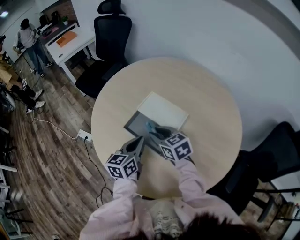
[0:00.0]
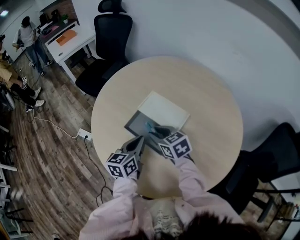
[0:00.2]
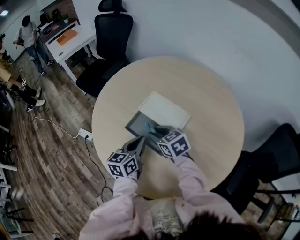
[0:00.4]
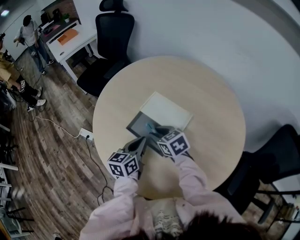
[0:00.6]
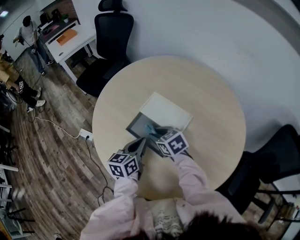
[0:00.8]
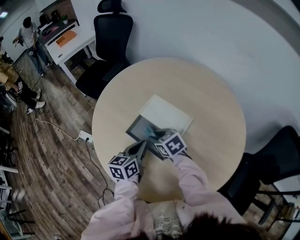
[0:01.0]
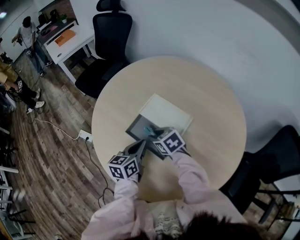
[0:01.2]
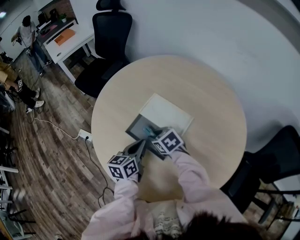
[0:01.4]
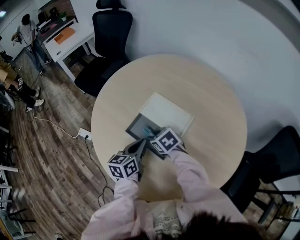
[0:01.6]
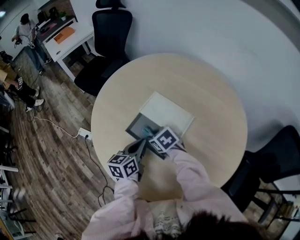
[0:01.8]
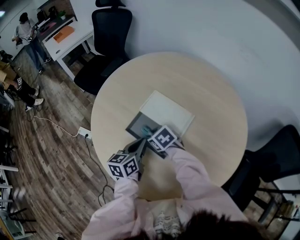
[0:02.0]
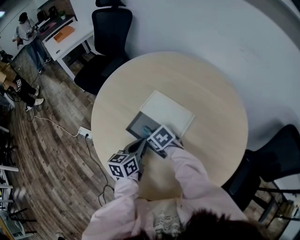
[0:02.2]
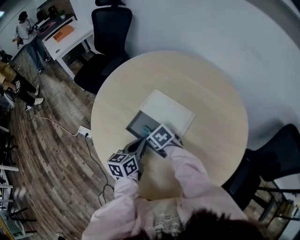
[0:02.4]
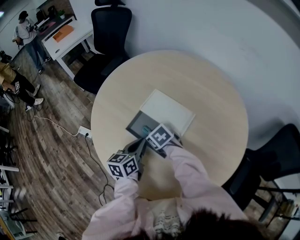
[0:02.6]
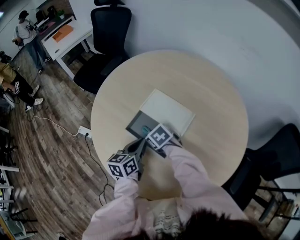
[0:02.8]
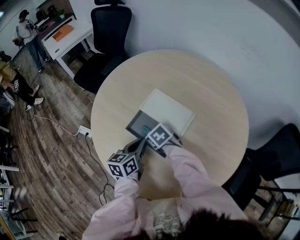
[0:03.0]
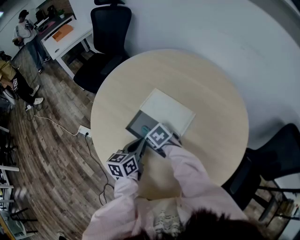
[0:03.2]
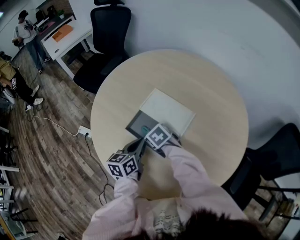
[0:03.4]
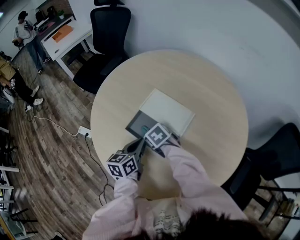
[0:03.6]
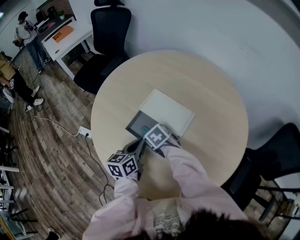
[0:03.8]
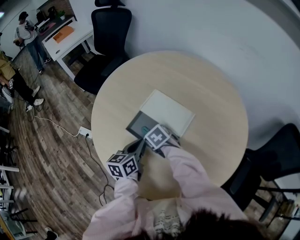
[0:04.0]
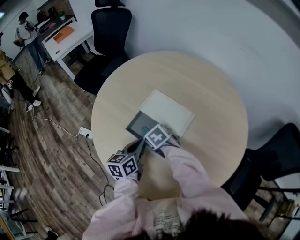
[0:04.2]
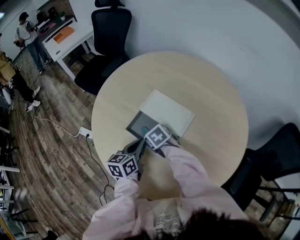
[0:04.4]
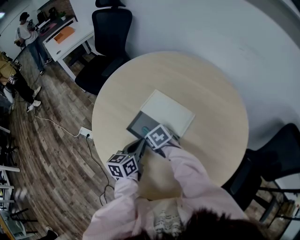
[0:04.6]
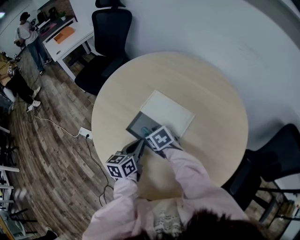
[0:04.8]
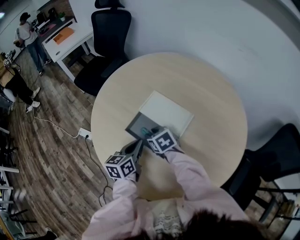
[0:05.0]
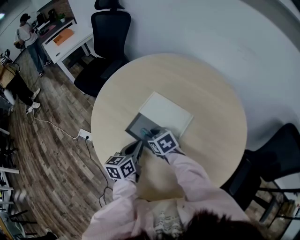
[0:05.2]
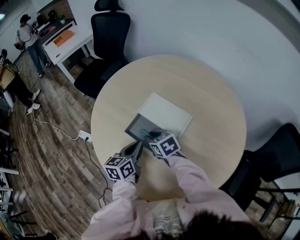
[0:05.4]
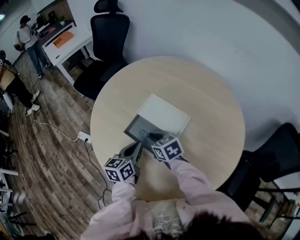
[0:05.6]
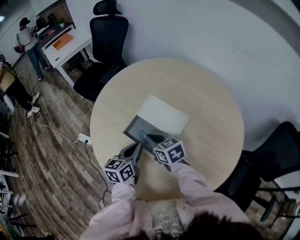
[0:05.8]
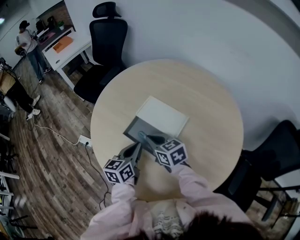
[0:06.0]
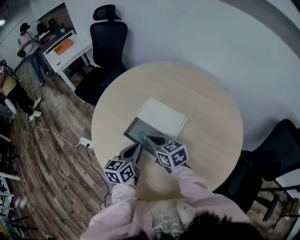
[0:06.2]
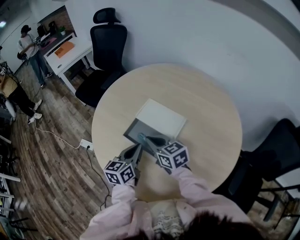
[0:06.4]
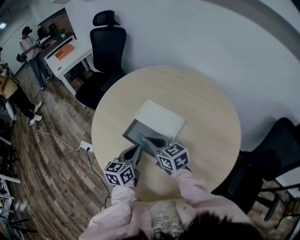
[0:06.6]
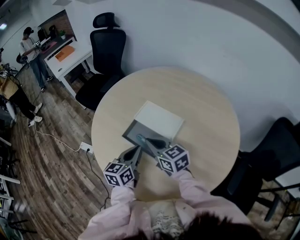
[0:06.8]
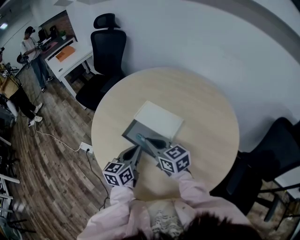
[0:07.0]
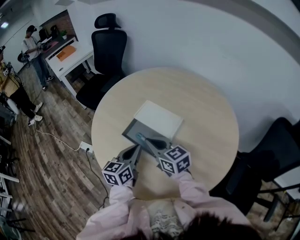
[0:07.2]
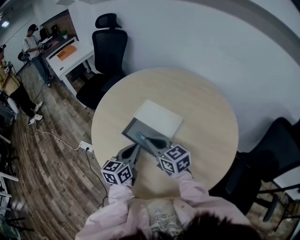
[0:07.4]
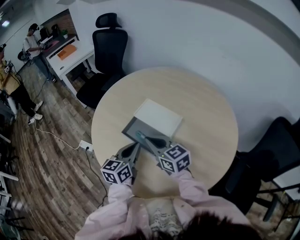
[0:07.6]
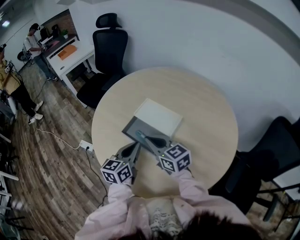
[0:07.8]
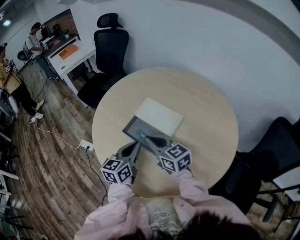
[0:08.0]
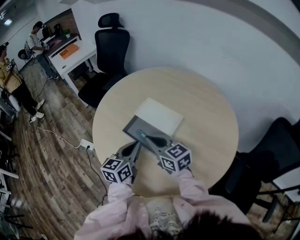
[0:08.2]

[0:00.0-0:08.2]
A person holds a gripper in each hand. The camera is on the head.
0:00.0 to 0:01.6: The right gripper travels downward by roughly 10 cm, and swivels approximately 20 degrees.
0:01.6 to 0:05.0: The grippers move only a little.
0:05.0 to 0:06.6: The left gripper shifts by some 5 cm, while the right gripper is displaced upward and backward by approximately 15 cm, points its fingers some 30 degrees further upward, and closes its fingers.
0:06.6 to 0:08.2: The grippers make only small movements.

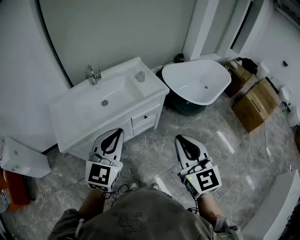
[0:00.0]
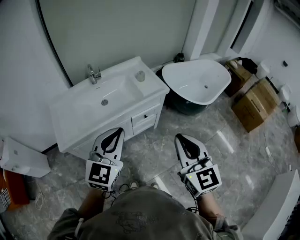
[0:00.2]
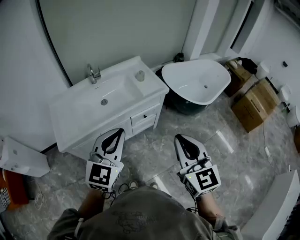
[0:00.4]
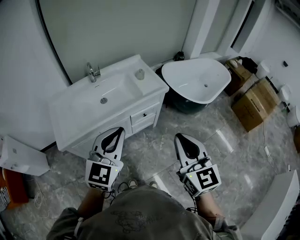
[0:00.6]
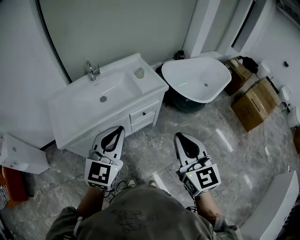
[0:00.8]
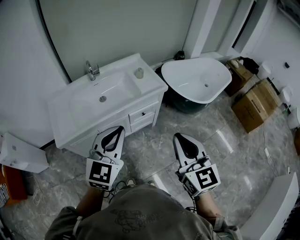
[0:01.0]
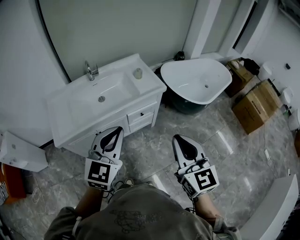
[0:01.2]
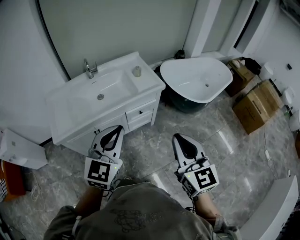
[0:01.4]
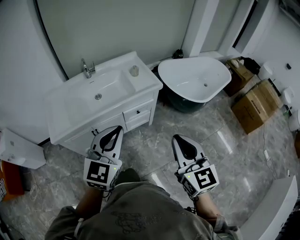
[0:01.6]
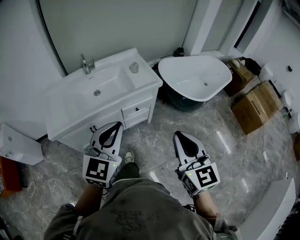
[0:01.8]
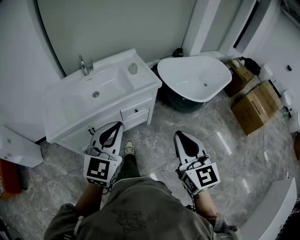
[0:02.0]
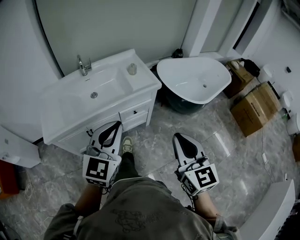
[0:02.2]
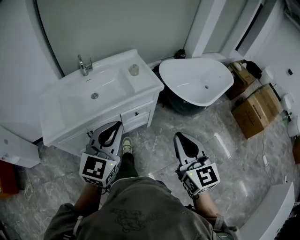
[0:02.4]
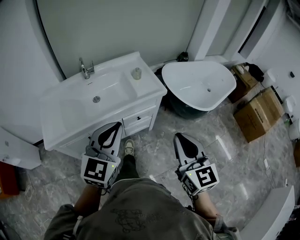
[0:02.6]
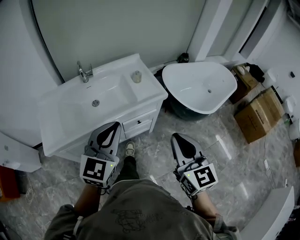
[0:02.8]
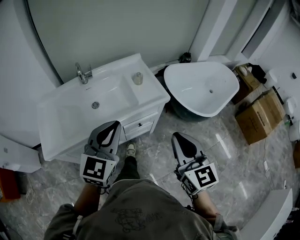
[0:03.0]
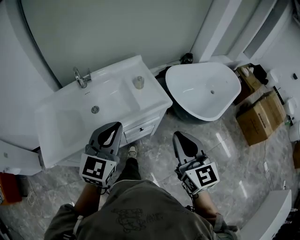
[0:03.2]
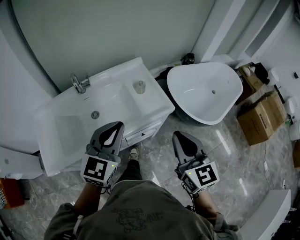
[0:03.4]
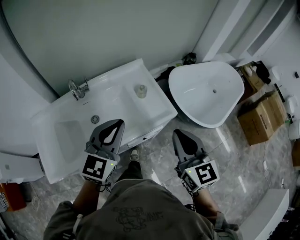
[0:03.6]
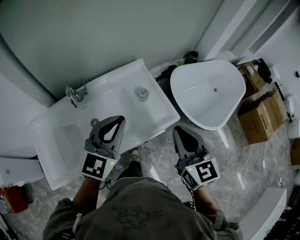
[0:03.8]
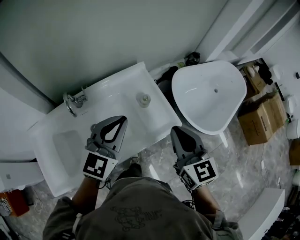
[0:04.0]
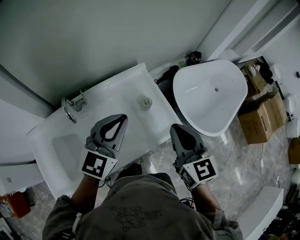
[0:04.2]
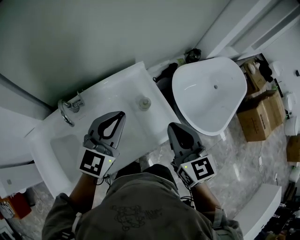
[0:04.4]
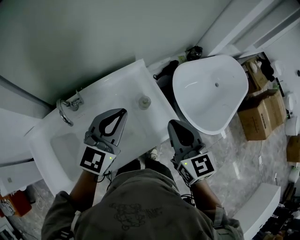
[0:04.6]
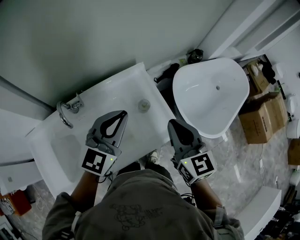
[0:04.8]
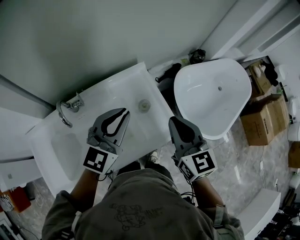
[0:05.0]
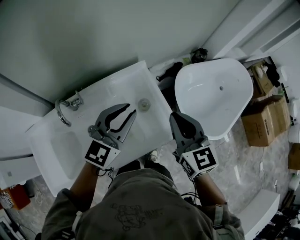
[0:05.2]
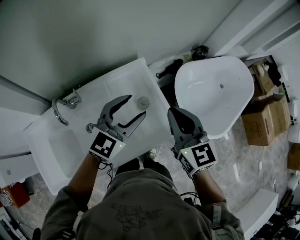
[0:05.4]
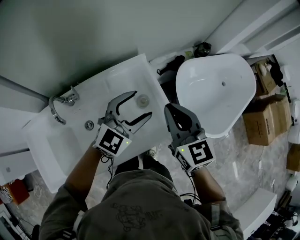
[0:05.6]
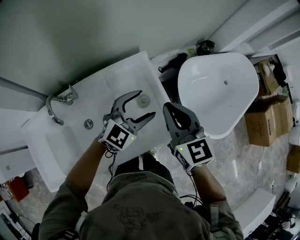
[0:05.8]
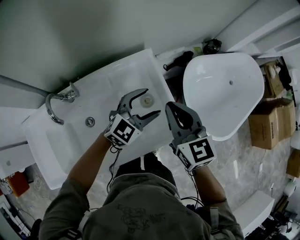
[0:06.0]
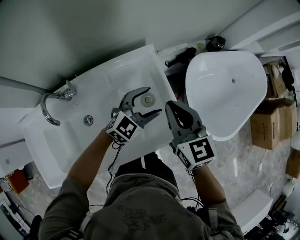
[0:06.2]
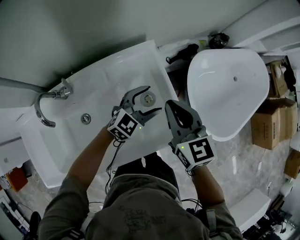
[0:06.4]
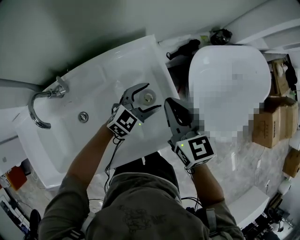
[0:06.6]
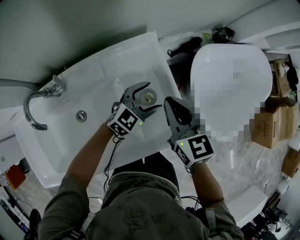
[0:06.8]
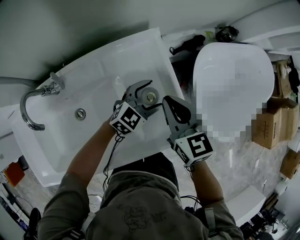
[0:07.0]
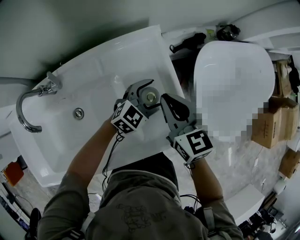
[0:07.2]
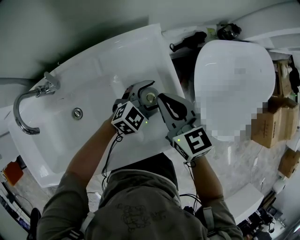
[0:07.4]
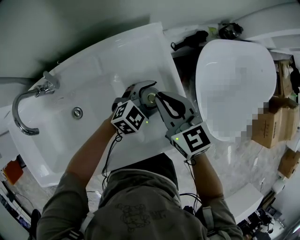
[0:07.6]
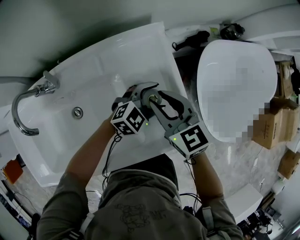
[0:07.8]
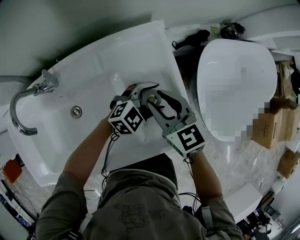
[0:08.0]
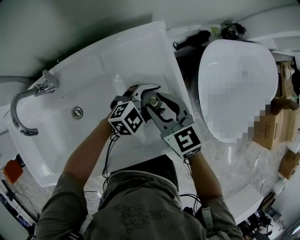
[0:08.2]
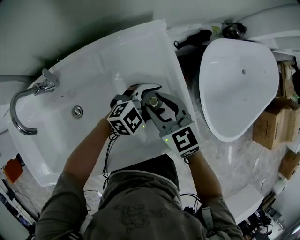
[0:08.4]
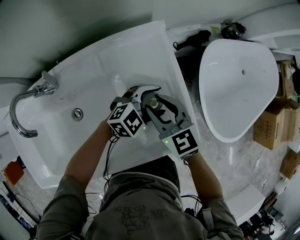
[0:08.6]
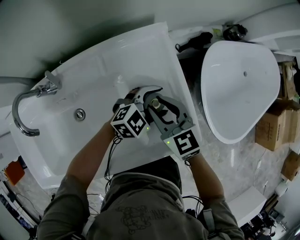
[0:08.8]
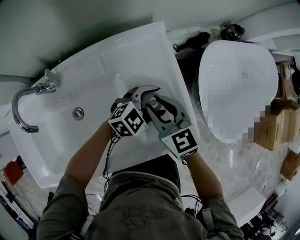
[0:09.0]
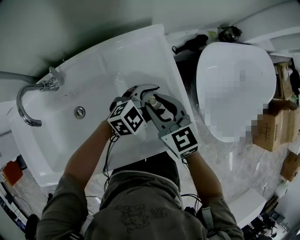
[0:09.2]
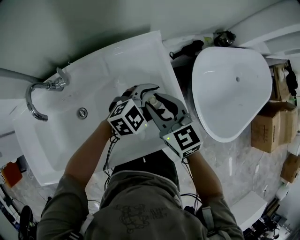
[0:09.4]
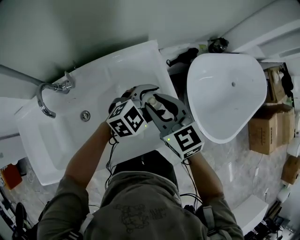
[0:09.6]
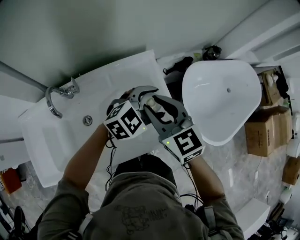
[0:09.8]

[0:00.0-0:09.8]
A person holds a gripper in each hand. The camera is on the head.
0:00.0 to 0:01.4: The grippers both shift to the right by roughly 5 cm.
0:01.4 to 0:02.8: Both grippers travel together forward, about 15 cm.
0:02.8 to 0:04.2: Both grippers move forward, roughly 35 cm.
0:04.2 to 0:05.6: The left gripper moves forward, to the right and downward, about 15 cm, and opens, while the right gripper heads forward, covering roughly 10 cm.
0:05.6 to 0:07.0: The grippers both shift downward by about 20 cm.
0:07.0 to 0:08.4: The right gripper moves downward, approximately 10 cm, and opens up.
0:08.4 to 0:09.8: Both grippers travel together upward, about 20 cm.

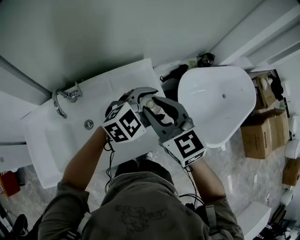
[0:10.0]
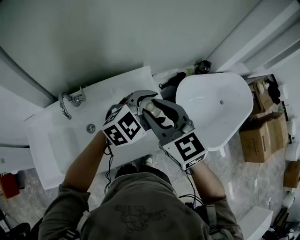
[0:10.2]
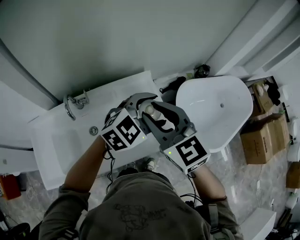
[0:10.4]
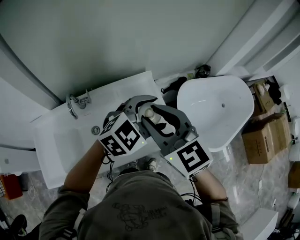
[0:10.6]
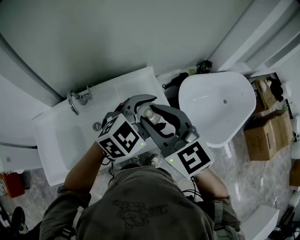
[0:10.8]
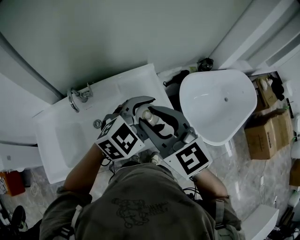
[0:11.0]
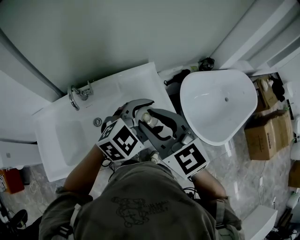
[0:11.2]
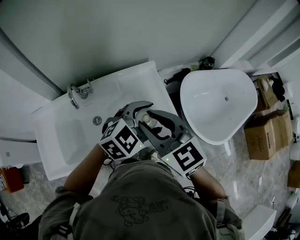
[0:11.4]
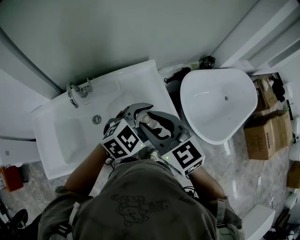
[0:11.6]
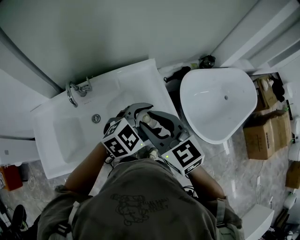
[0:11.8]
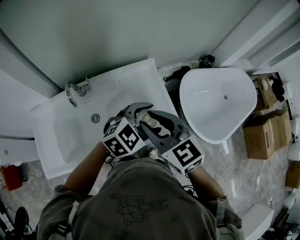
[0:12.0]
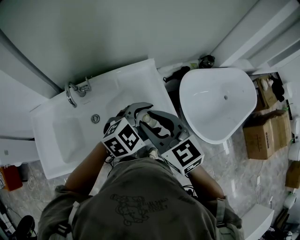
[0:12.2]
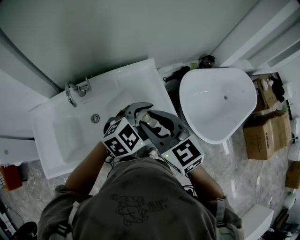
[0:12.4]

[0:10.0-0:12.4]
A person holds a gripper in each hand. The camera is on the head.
0:10.0 to 0:11.2: Both grippers move backward and upward, roughly 10 cm.
0:11.2 to 0:12.4: Both grippers move downward, approximately 5 cm.

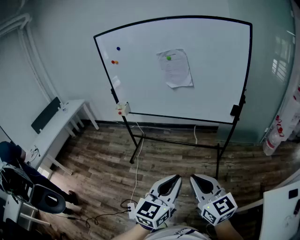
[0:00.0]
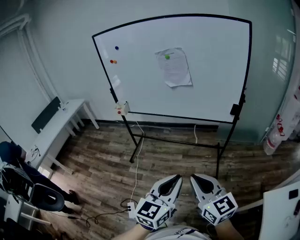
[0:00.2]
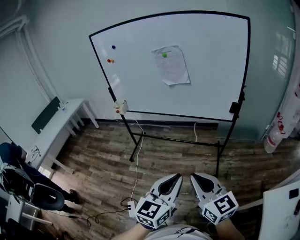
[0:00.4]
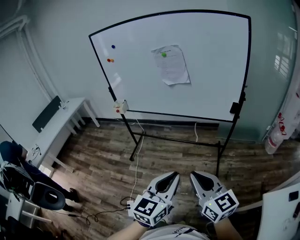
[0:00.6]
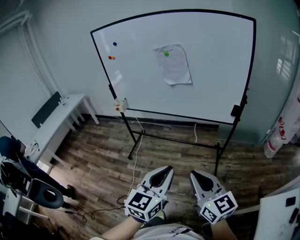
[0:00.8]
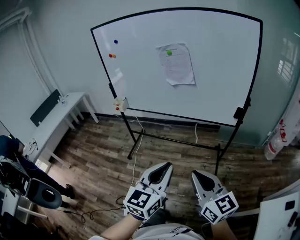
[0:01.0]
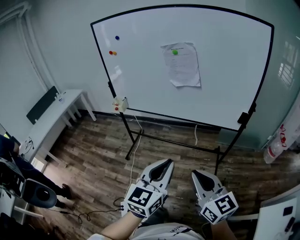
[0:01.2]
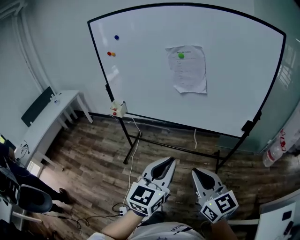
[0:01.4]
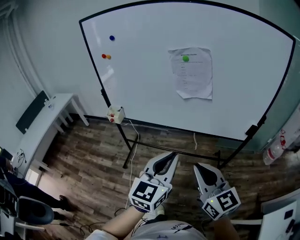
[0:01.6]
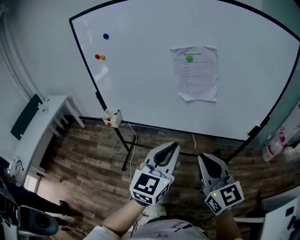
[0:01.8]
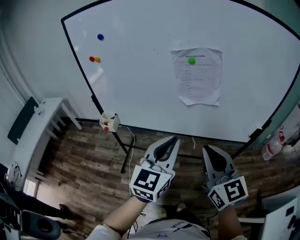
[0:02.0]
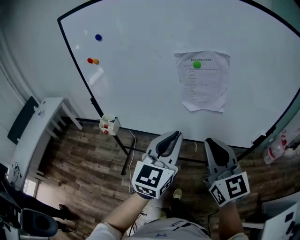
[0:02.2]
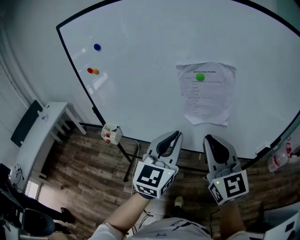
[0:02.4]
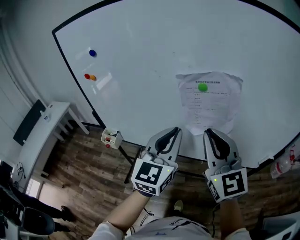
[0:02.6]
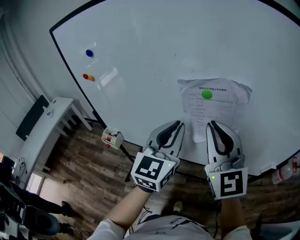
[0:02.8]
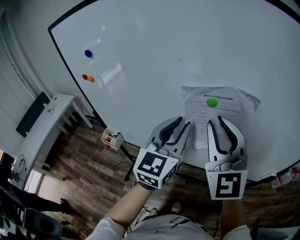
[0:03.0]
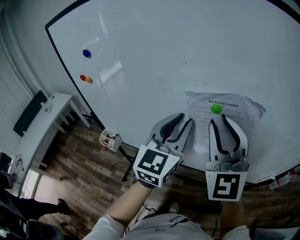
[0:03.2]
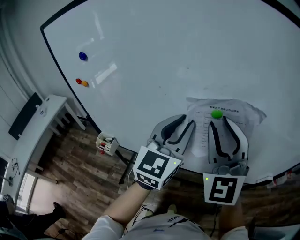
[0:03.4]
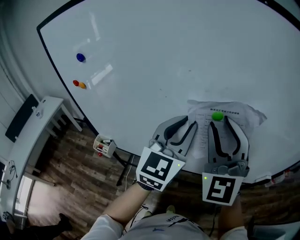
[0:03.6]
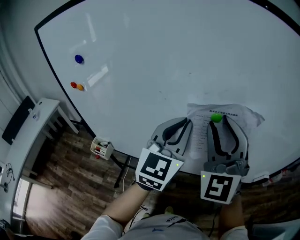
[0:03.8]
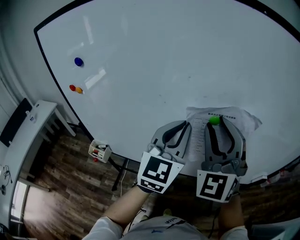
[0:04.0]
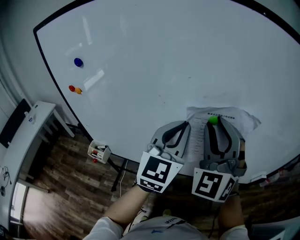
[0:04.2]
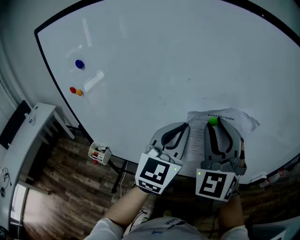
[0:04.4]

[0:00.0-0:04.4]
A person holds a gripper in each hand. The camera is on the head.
0:00.0 to 0:01.4: The two grippers go roughly 25 cm forward.
0:01.4 to 0:03.0: The pair of grippers is taken forward, roughly 50 cm. The right gripper turns by about 40 degrees.
0:03.0 to 0:04.4: The right gripper rotates some 30 degrees.
